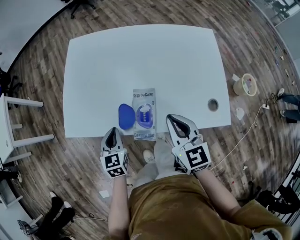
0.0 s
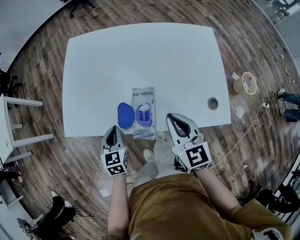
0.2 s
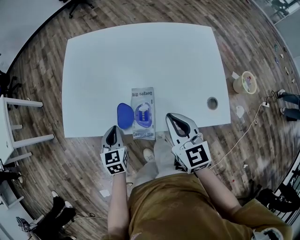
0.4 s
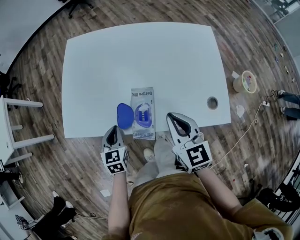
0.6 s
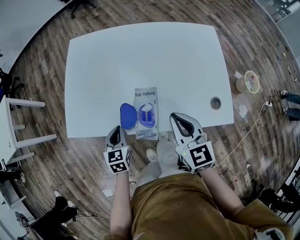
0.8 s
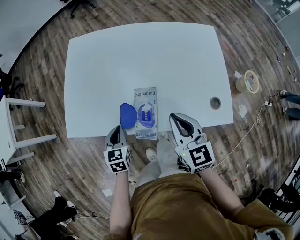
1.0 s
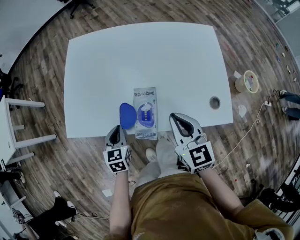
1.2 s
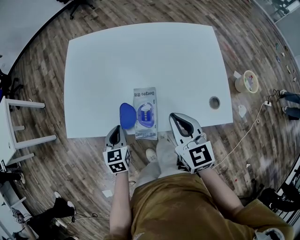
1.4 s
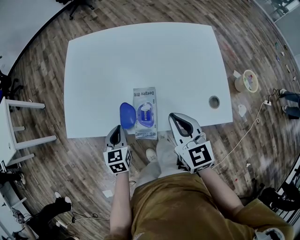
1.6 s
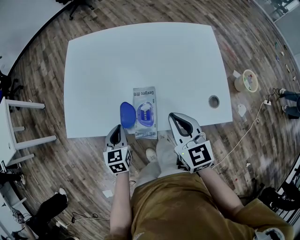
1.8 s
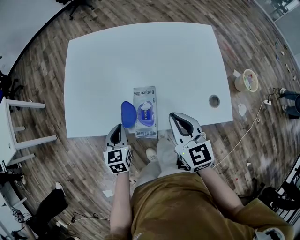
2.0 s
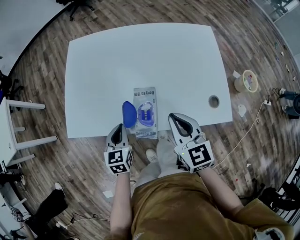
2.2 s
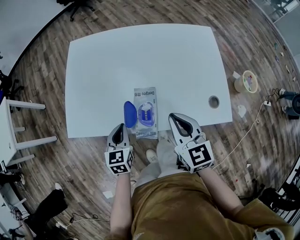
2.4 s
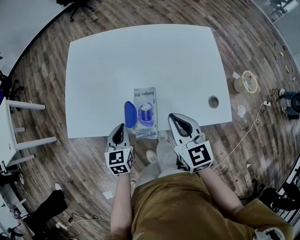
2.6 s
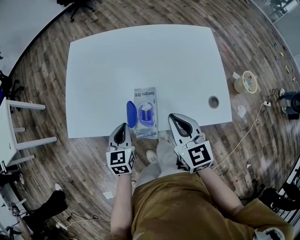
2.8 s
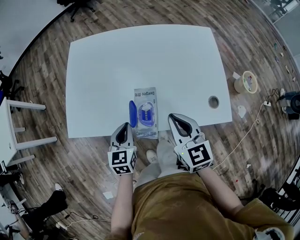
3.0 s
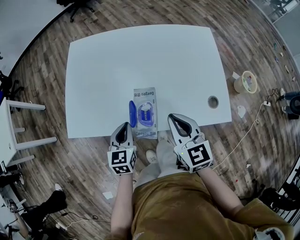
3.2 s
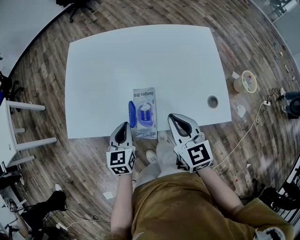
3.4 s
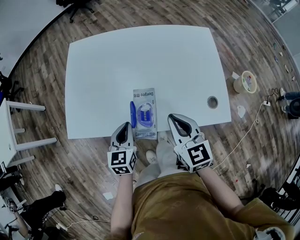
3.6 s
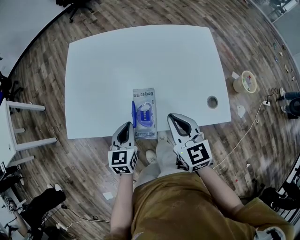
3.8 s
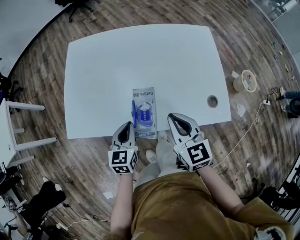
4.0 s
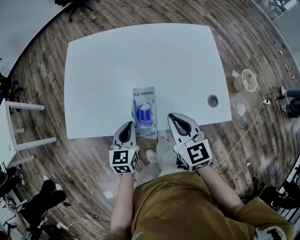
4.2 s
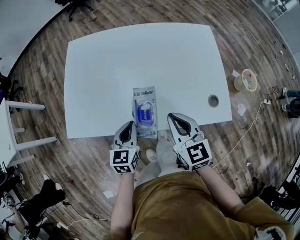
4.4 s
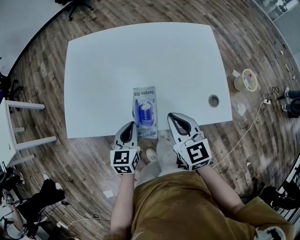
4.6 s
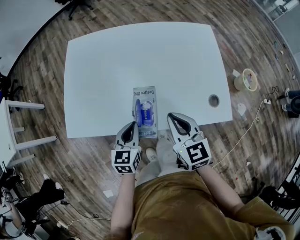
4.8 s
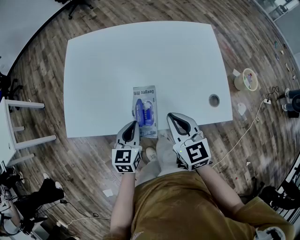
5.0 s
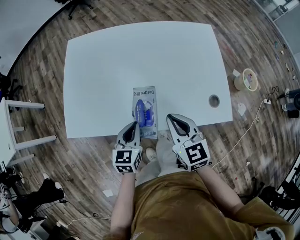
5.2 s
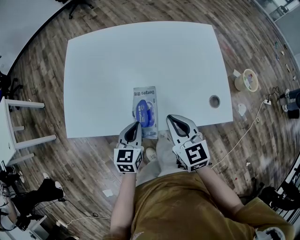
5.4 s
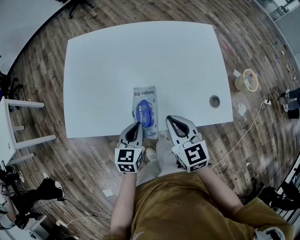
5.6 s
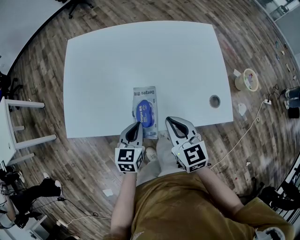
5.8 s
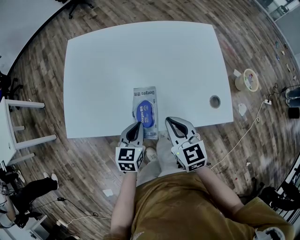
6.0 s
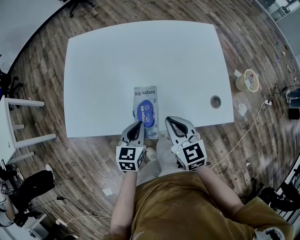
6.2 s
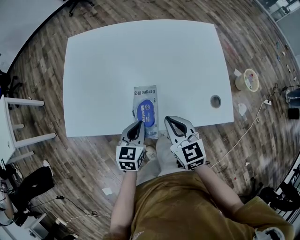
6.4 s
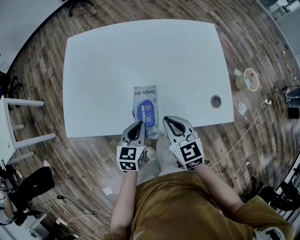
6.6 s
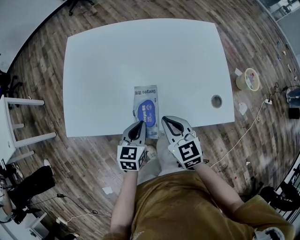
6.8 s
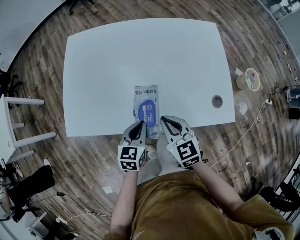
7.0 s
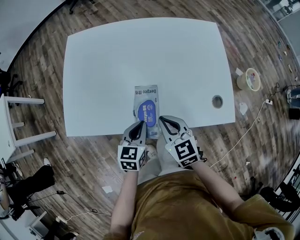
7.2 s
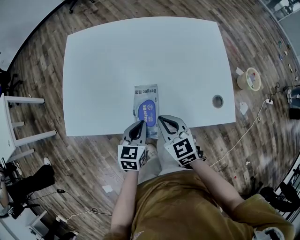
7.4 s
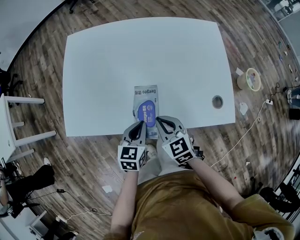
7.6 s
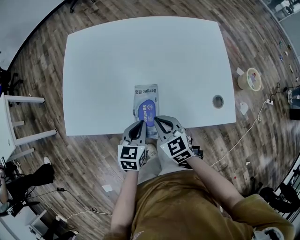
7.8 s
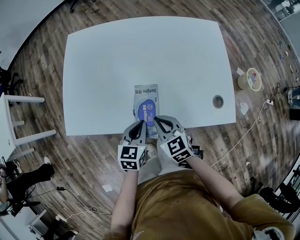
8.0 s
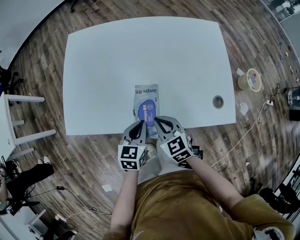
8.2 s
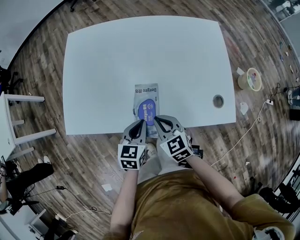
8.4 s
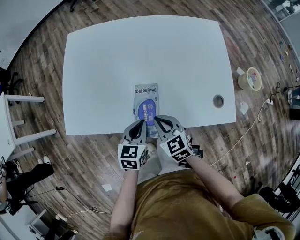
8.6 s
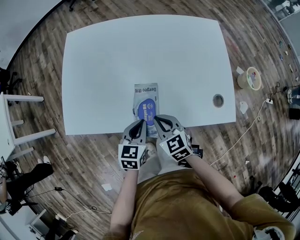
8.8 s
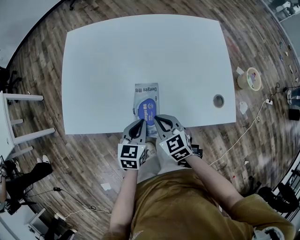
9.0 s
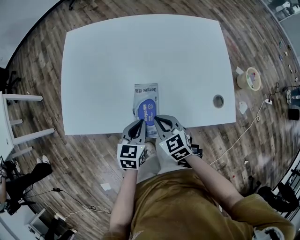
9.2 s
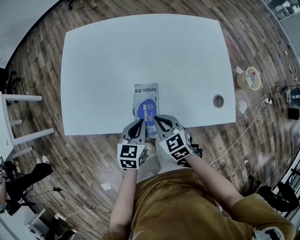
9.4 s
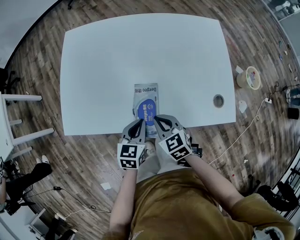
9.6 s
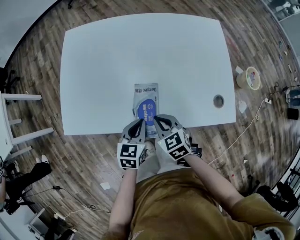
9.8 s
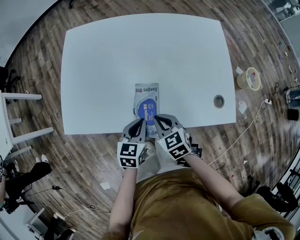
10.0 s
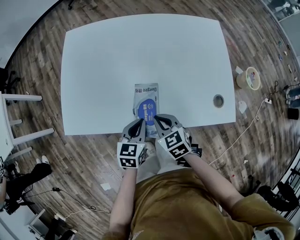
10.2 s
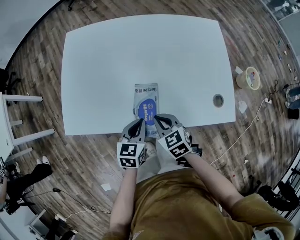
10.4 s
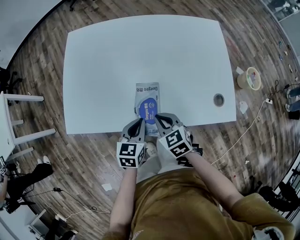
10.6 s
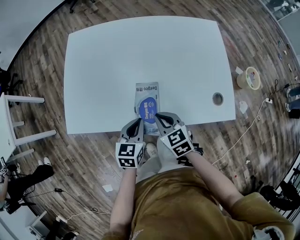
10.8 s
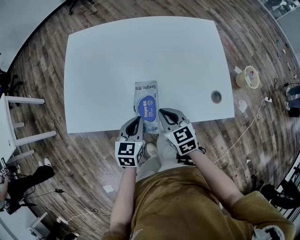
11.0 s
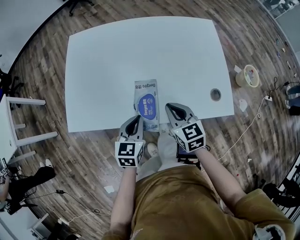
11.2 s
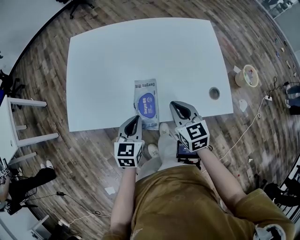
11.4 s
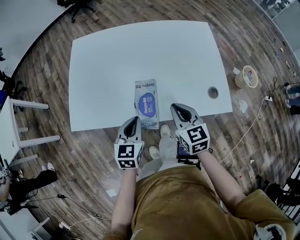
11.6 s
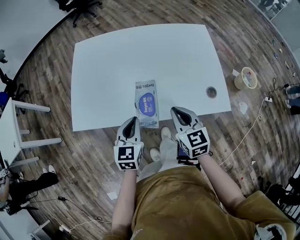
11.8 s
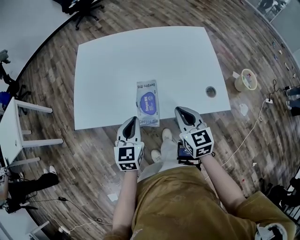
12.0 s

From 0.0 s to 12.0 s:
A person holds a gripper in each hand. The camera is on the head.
From 0.0 s to 1.6 s: The grippers move only a little.
From 1.6 s to 3.0 s: The left gripper ends up some 5 cm from where it was.
From 3.0 s to 6.0 s: The grippers make only small movements.
From 6.0 s to 7.6 s: The right gripper moves downward, about 5 cm.
From 7.6 s to 10.4 s: There are only small adjustments of the grippers.
From 10.4 s to 12.0 s: The right gripper goes some 15 cm upward and to the right, and swivels some 30 degrees; the left gripper is displaced upward by roughly 10 cm.

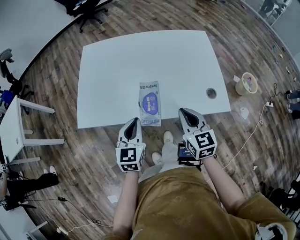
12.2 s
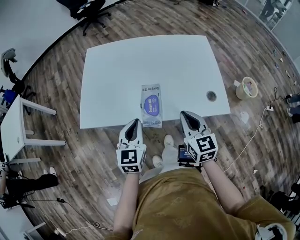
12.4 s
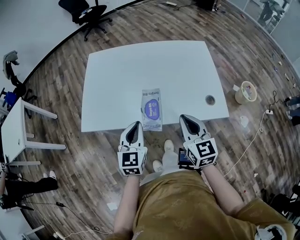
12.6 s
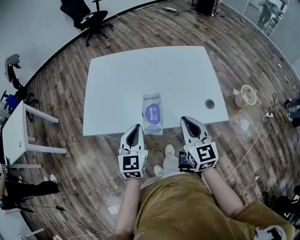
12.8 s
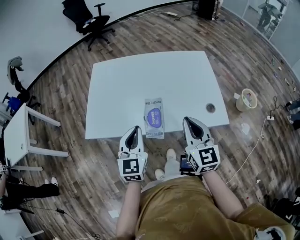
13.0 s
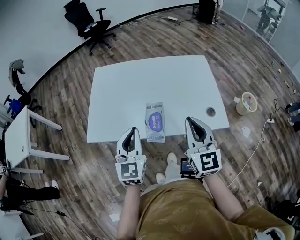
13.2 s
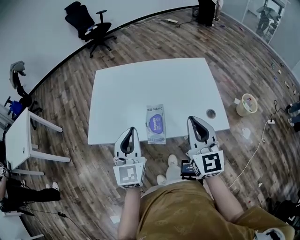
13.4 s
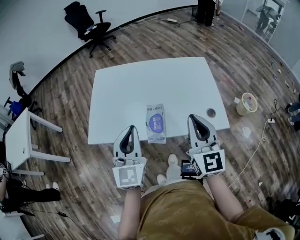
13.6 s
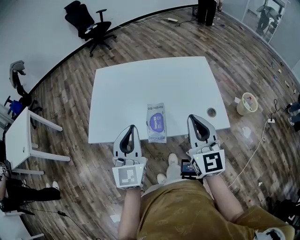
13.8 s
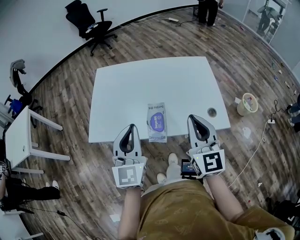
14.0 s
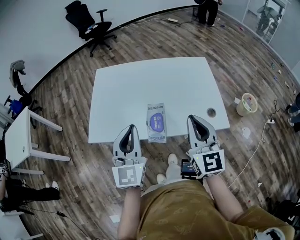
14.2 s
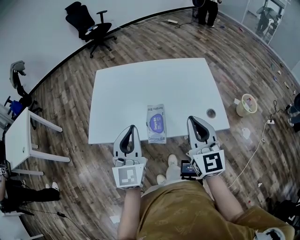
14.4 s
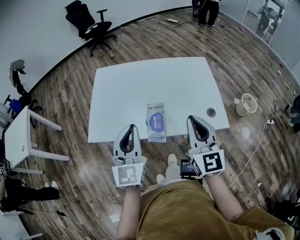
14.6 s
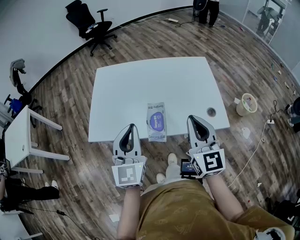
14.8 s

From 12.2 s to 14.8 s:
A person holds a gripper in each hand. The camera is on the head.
From 12.2 s to 13.4 s: Both grippers move upward, approximately 15 cm. The left gripper changes its angle by about 20 degrees; the right gripper changes its angle by some 30 degrees.
From 13.4 s to 14.8 s: The grippers stay close to where they were, moving slightly.

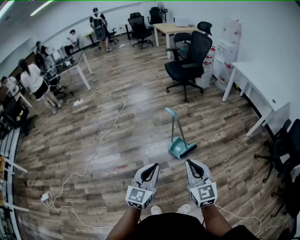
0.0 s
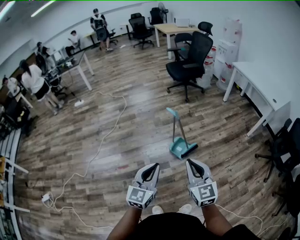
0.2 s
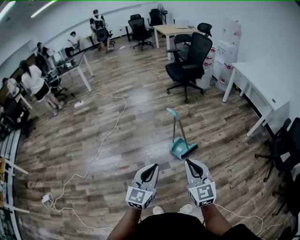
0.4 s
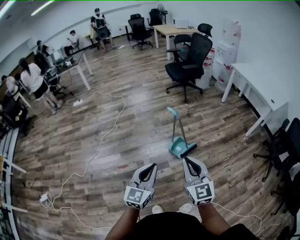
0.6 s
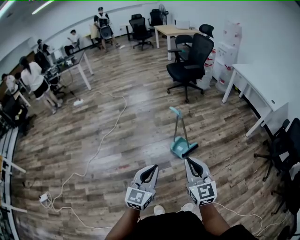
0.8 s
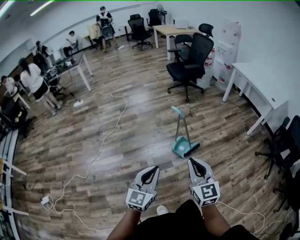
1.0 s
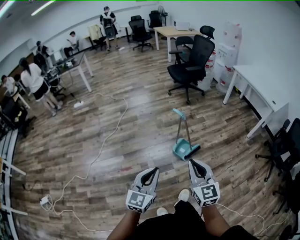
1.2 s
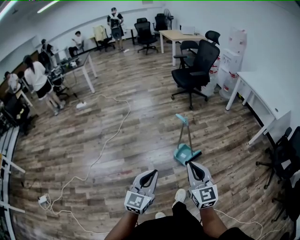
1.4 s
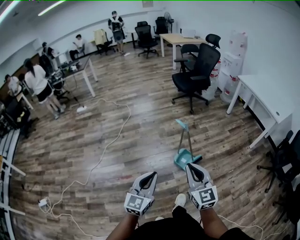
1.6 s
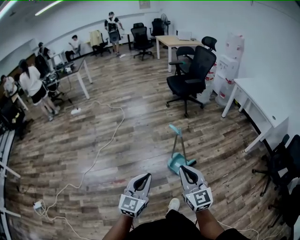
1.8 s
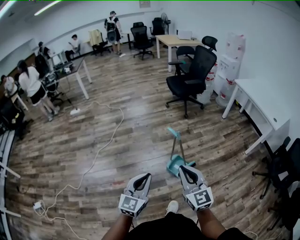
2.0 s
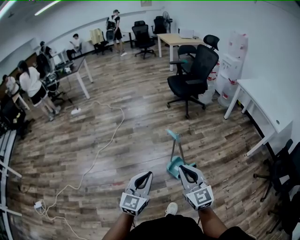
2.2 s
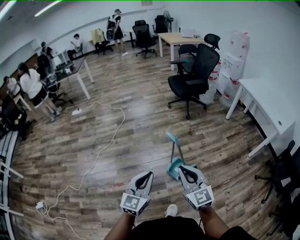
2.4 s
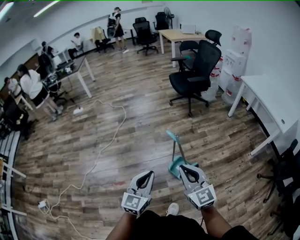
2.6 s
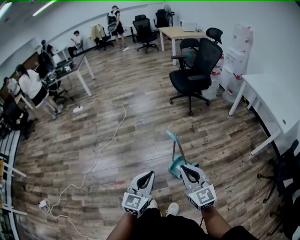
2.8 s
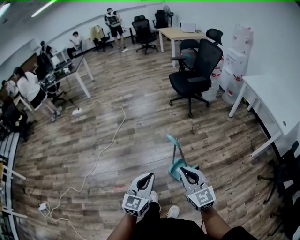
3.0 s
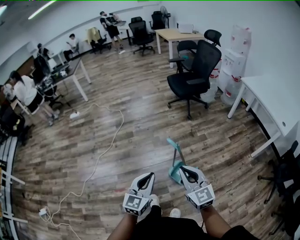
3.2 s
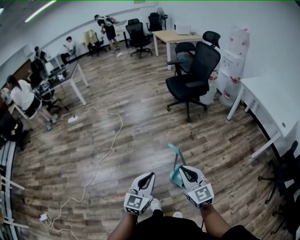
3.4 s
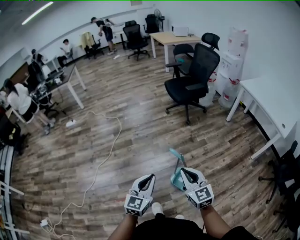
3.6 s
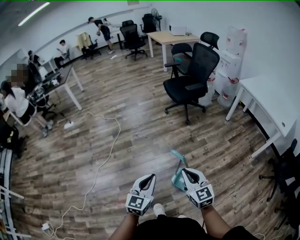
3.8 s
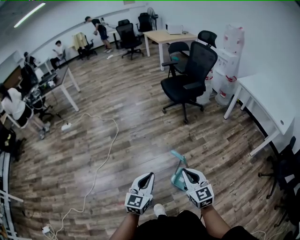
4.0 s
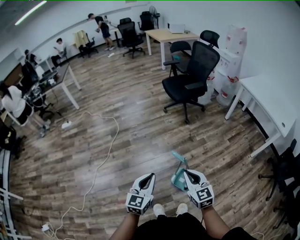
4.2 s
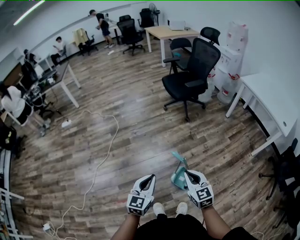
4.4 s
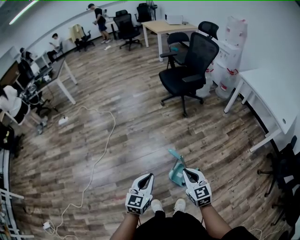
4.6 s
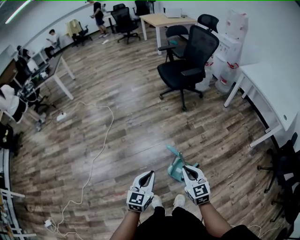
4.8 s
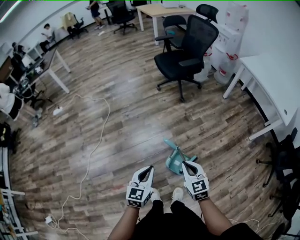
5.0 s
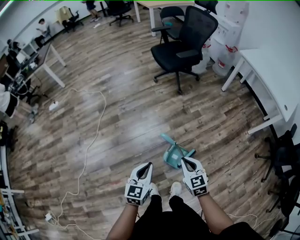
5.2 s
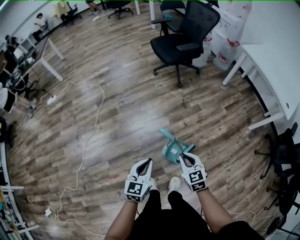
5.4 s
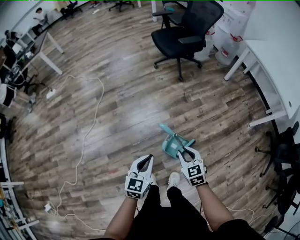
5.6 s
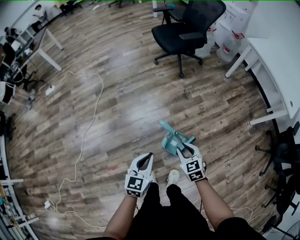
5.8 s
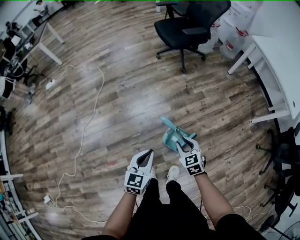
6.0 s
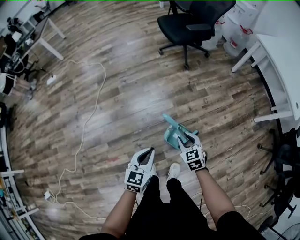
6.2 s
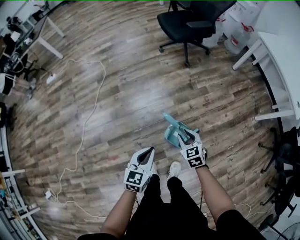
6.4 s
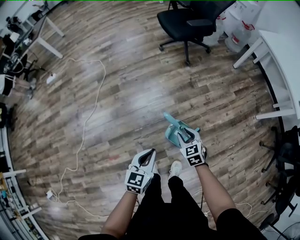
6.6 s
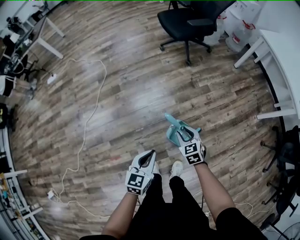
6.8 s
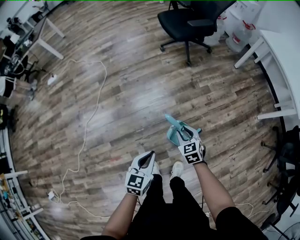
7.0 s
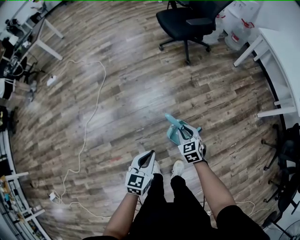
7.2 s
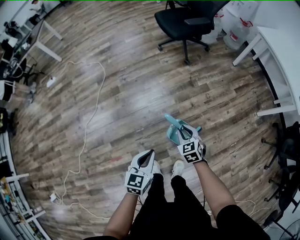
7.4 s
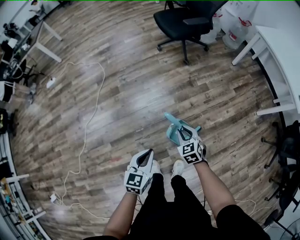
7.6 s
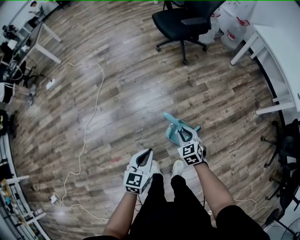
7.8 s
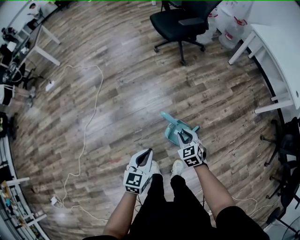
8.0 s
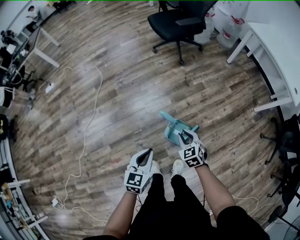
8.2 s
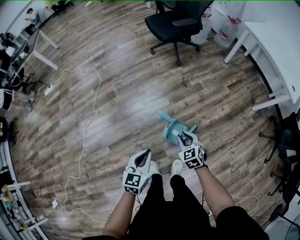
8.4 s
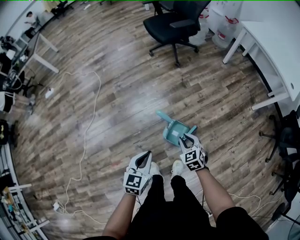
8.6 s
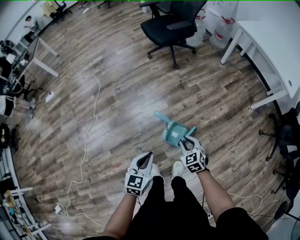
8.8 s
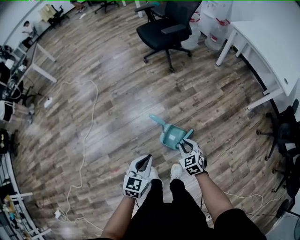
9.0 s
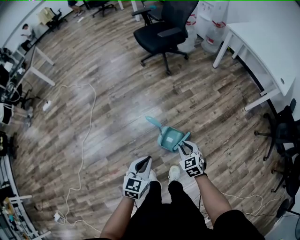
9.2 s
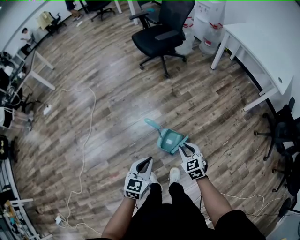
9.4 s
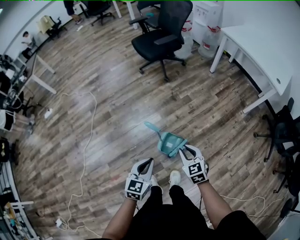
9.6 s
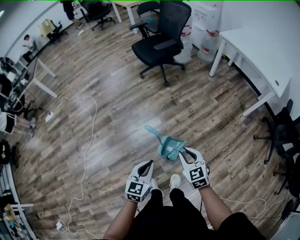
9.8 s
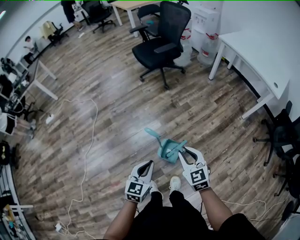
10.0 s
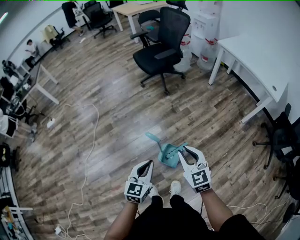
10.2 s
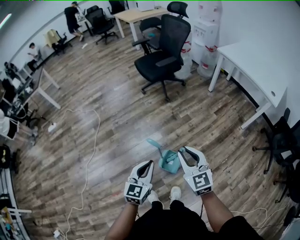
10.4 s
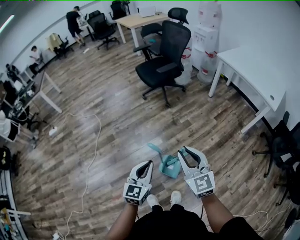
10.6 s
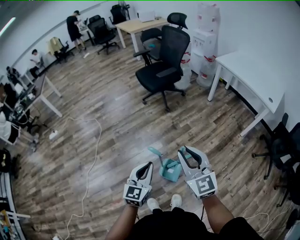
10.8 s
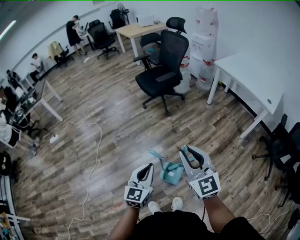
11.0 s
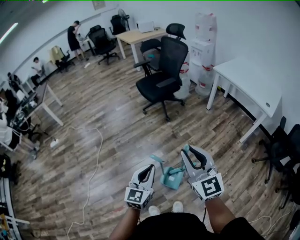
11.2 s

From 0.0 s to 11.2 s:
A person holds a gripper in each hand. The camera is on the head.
From 0.0 s to 1.6 s: The two grippers go roughly 10 cm to the left.
From 1.6 s to 3.2 s: The grippers both shift forward by about 20 cm.
From 3.2 s to 4.8 s: The left gripper is displaced forward and downward by approximately 15 cm, while the right gripper goes roughly 15 cm downward and forward.
From 4.8 s to 6.4 s: The right gripper travels downward and forward by some 20 cm, and opens its fingers, while the left gripper moves downward, roughly 10 cm.
From 6.4 s to 8.0 s: There are only small adjustments of the grippers.
From 8.0 s to 9.6 s: The left gripper goes some 10 cm to the right, while the right gripper travels to the right, upward and backward by about 15 cm.
From 9.6 s to 11.2 s: The right gripper moves upward, roughly 30 cm, and points its fingers approximately 40 degrees further upward, while the left gripper goes approximately 15 cm upward and forward, and turns by approximately 20 degrees.
